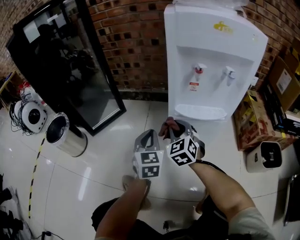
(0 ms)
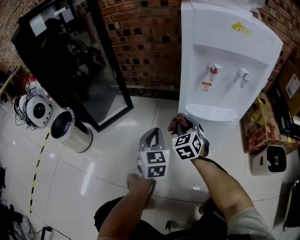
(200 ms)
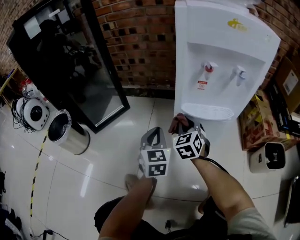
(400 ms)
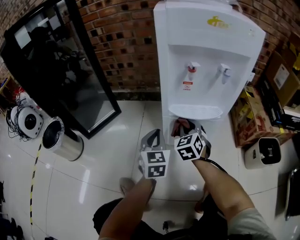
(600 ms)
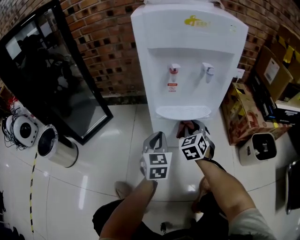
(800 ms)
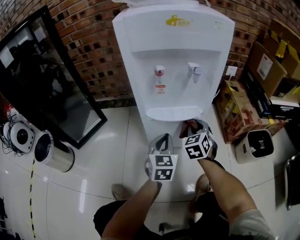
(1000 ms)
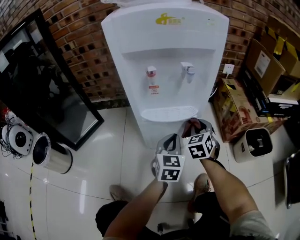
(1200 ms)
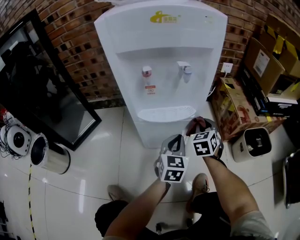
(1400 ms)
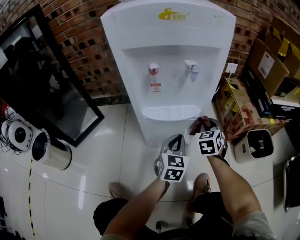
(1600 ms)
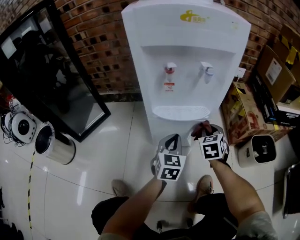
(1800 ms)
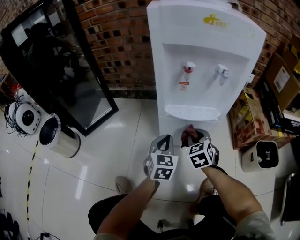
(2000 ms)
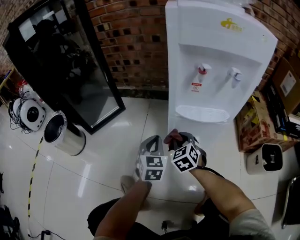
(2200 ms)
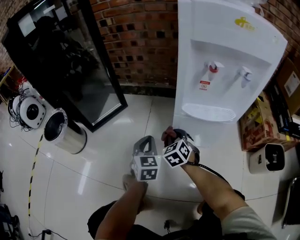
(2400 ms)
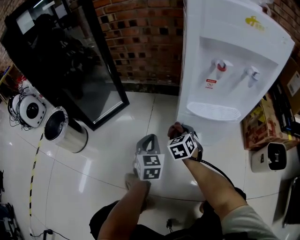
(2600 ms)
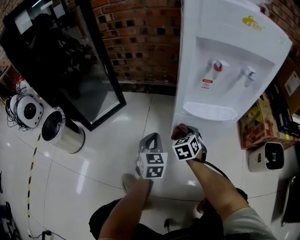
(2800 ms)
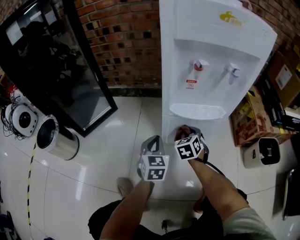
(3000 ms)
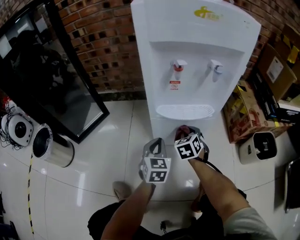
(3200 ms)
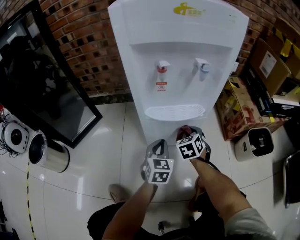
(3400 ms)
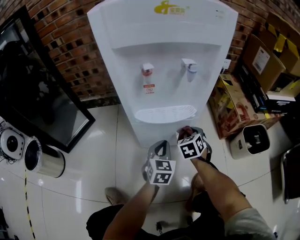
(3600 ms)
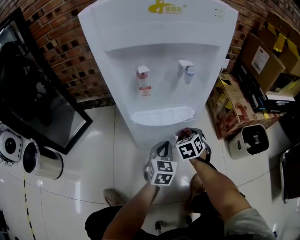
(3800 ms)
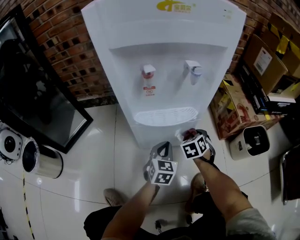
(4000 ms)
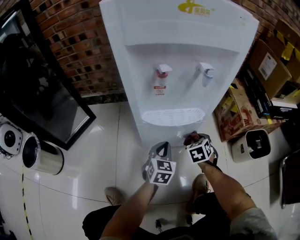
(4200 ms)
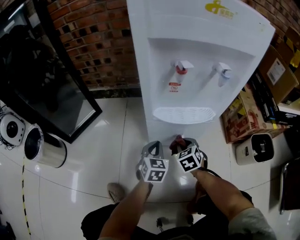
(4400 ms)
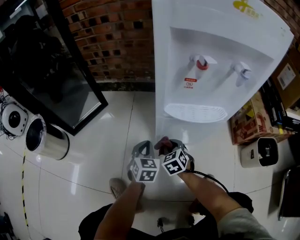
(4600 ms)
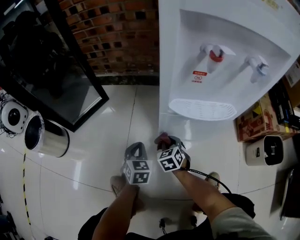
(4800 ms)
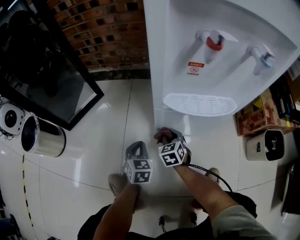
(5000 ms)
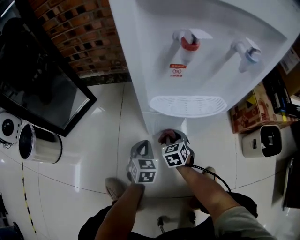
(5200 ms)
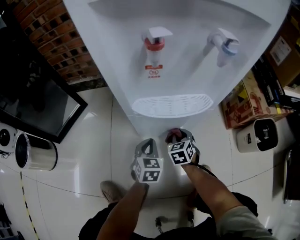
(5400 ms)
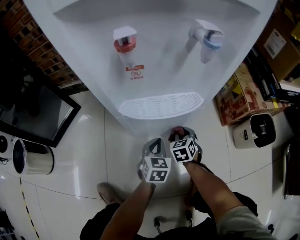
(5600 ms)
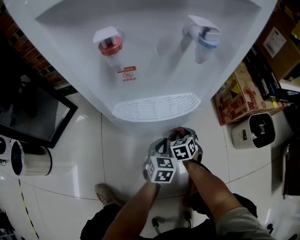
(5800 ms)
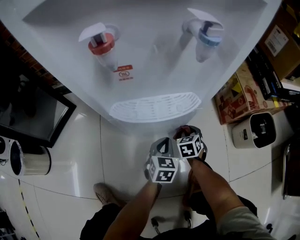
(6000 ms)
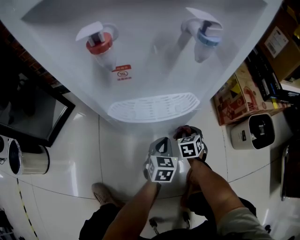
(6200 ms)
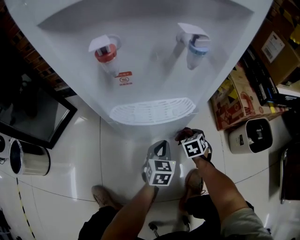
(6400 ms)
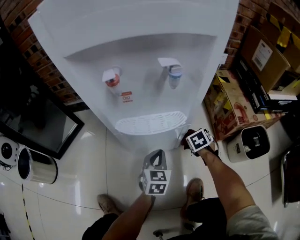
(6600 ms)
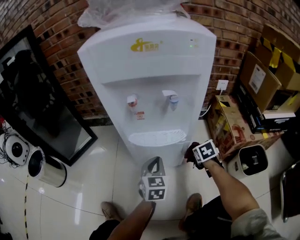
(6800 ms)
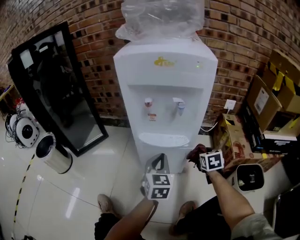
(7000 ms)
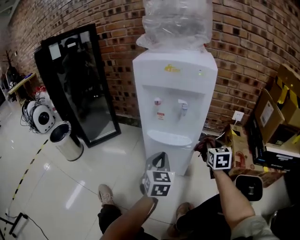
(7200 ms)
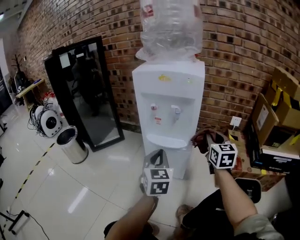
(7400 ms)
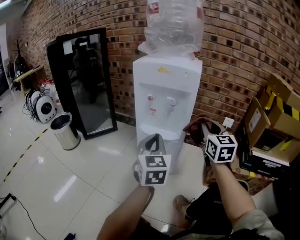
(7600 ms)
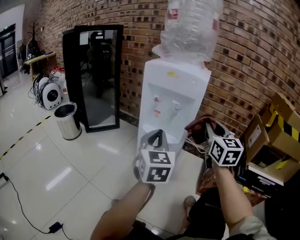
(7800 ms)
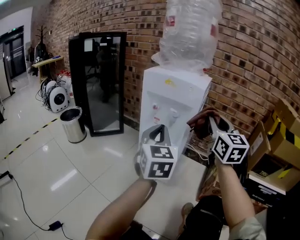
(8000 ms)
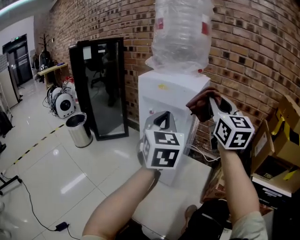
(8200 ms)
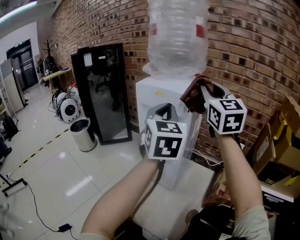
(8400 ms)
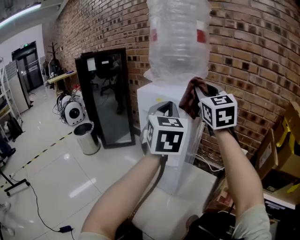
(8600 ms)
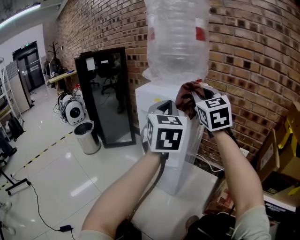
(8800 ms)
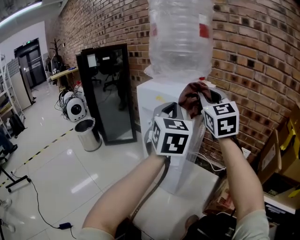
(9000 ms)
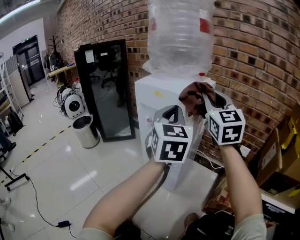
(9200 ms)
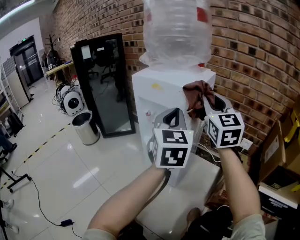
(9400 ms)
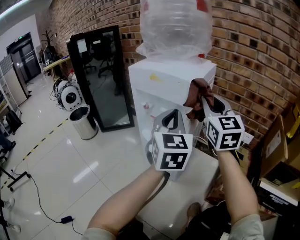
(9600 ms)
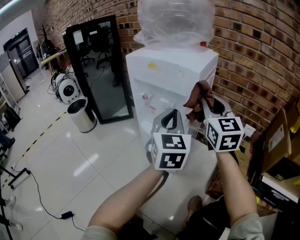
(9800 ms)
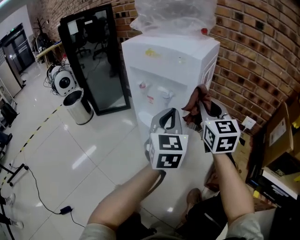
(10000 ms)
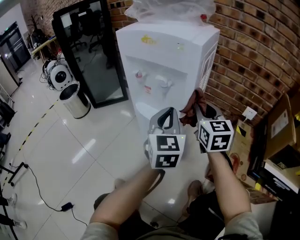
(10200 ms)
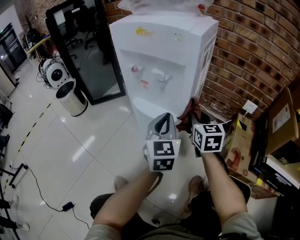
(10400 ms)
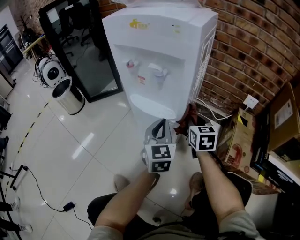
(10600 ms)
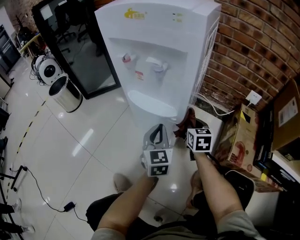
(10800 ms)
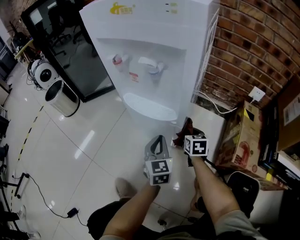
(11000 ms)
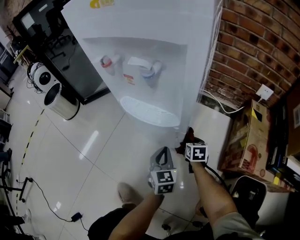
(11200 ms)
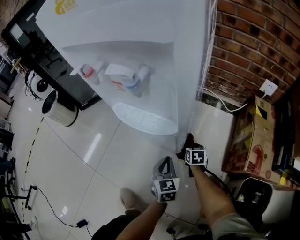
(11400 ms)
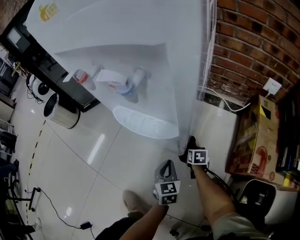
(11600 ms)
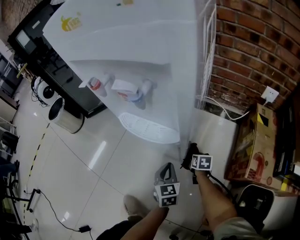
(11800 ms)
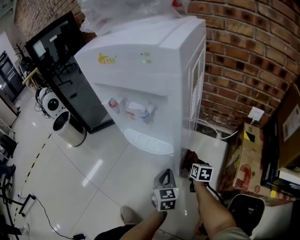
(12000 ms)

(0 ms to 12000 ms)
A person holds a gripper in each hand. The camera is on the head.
0 ms - 1600 ms: The left gripper ends up some 25 cm from where it was, and rotates approximately 20 degrees; the right gripper moves roughly 30 cm, and changes its angle by roughly 30 degrees.
1600 ms - 3000 ms: The left gripper shifts by about 20 cm.
3000 ms - 4400 ms: The left gripper moves downward and to the right, approximately 10 cm. Meanwhile the right gripper moves roughly 15 cm to the right and comes back.
4400 ms - 6000 ms: The right gripper shifts by approximately 20 cm, and swivels approximately 20 degrees. Meanwhile the left gripper changes place by roughly 15 cm.
6000 ms - 7600 ms: The two grippers go some 50 cm upward. The right gripper tilts its fingers approximately 50 degrees upward. Meanwhile the left gripper tips its fingers upward by approximately 30 degrees.
7600 ms - 9000 ms: The right gripper is displaced upward and forward by about 25 cm, and swivels approximately 20 degrees. The left gripper moves upward, forward and to the right, some 25 cm.
9000 ms - 10400 ms: The grippers both shift downward by about 30 cm. The right gripper changes its angle by some 30 degrees.
10400 ms - 12000 ms: Both grippers move downward, roughly 25 cm. The right gripper turns by about 30 degrees; the left gripper rotates approximately 20 degrees.

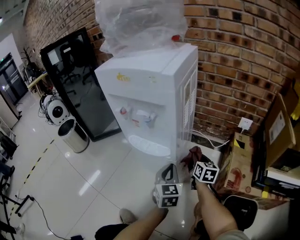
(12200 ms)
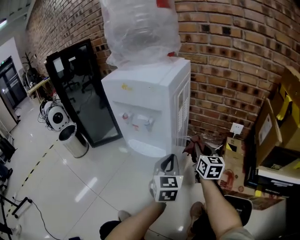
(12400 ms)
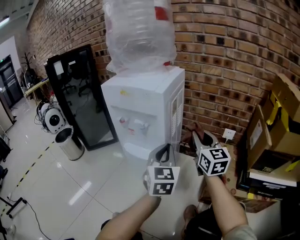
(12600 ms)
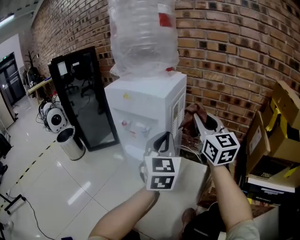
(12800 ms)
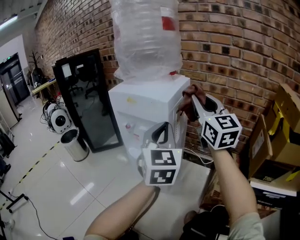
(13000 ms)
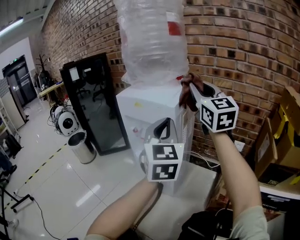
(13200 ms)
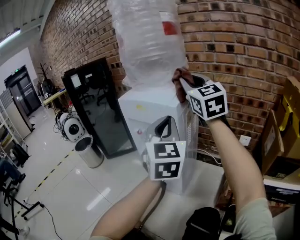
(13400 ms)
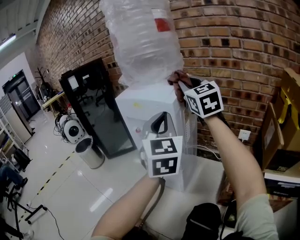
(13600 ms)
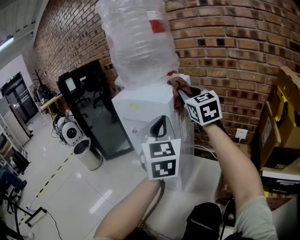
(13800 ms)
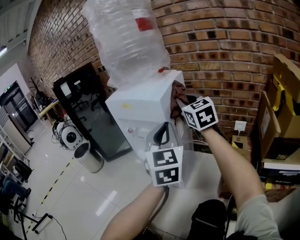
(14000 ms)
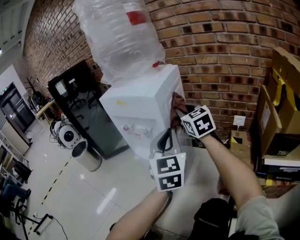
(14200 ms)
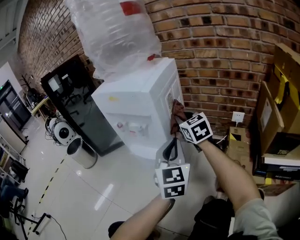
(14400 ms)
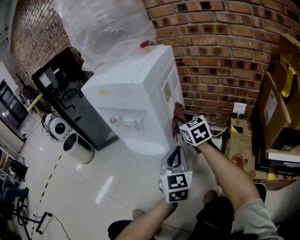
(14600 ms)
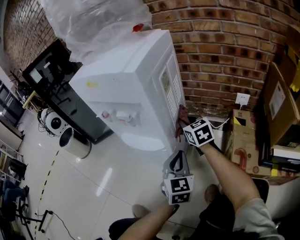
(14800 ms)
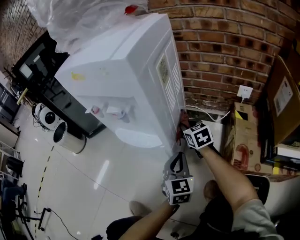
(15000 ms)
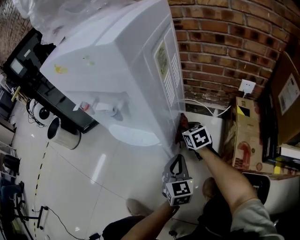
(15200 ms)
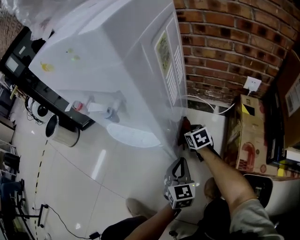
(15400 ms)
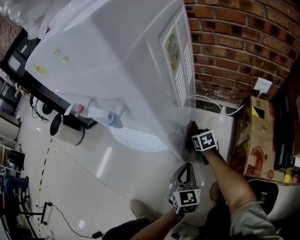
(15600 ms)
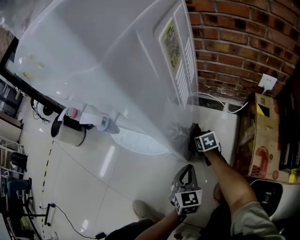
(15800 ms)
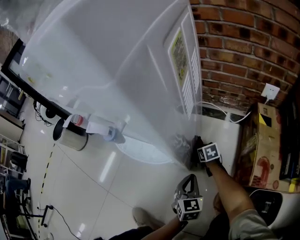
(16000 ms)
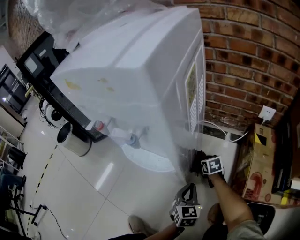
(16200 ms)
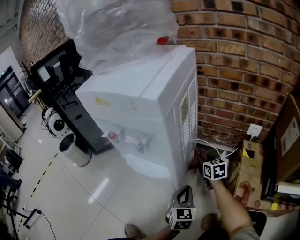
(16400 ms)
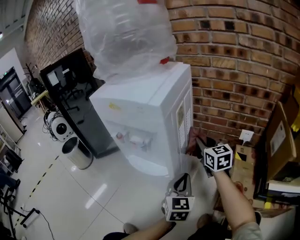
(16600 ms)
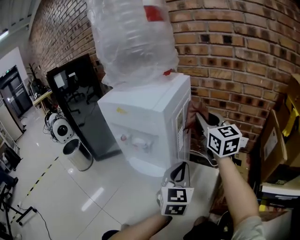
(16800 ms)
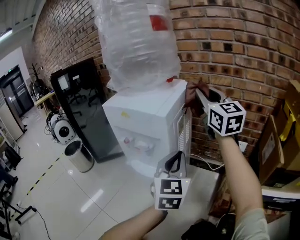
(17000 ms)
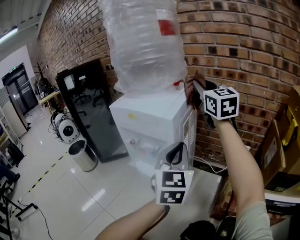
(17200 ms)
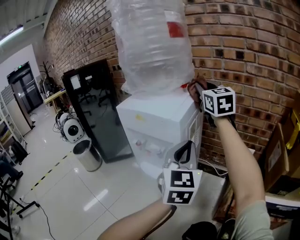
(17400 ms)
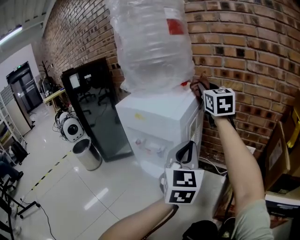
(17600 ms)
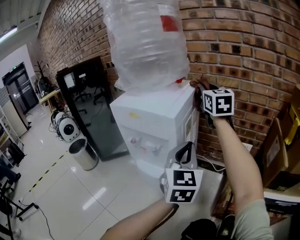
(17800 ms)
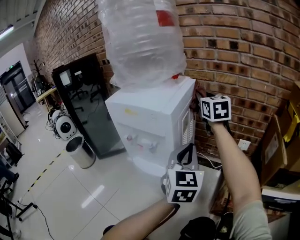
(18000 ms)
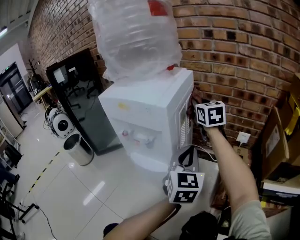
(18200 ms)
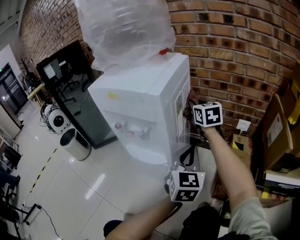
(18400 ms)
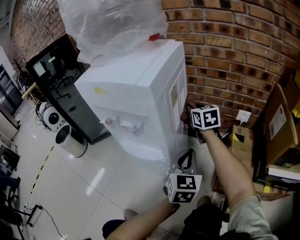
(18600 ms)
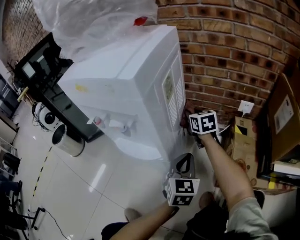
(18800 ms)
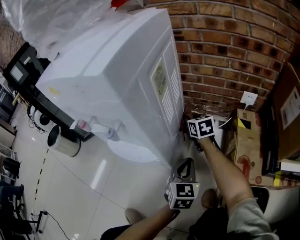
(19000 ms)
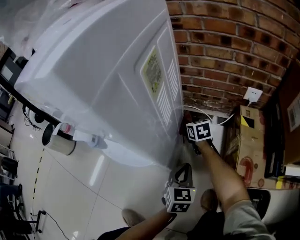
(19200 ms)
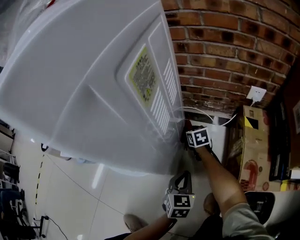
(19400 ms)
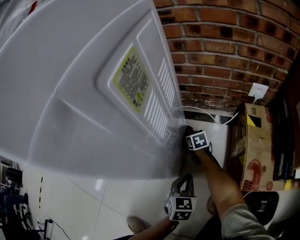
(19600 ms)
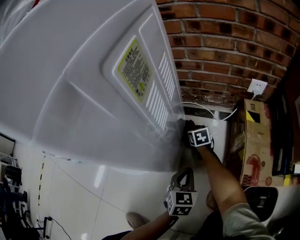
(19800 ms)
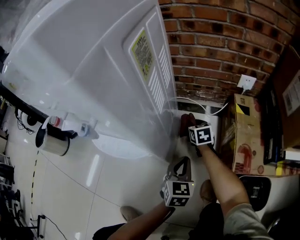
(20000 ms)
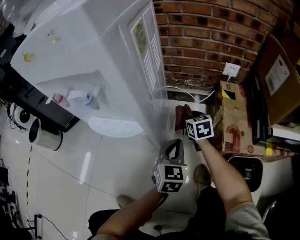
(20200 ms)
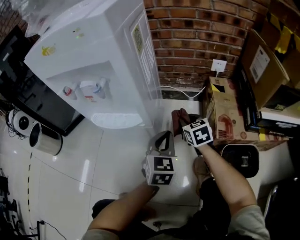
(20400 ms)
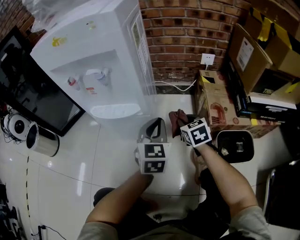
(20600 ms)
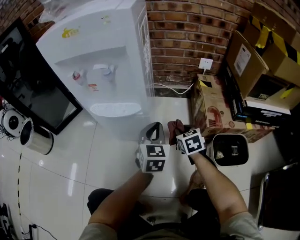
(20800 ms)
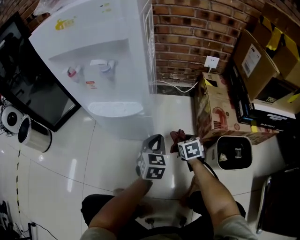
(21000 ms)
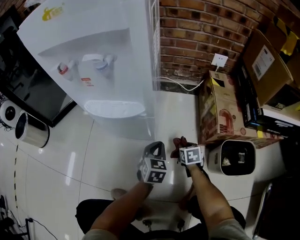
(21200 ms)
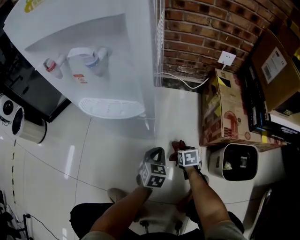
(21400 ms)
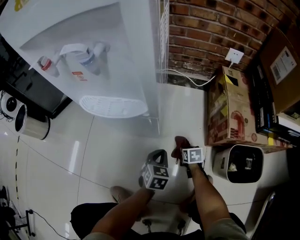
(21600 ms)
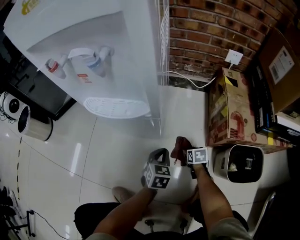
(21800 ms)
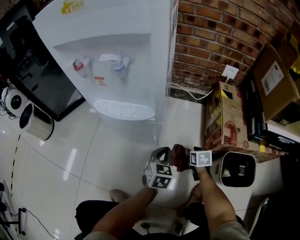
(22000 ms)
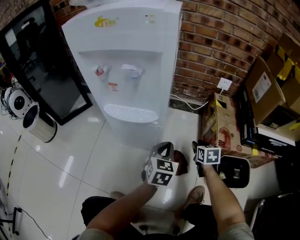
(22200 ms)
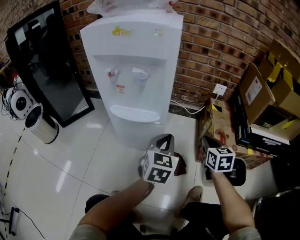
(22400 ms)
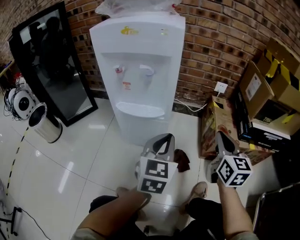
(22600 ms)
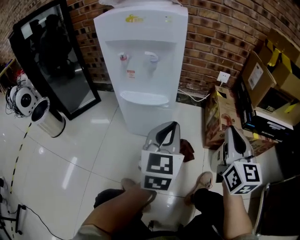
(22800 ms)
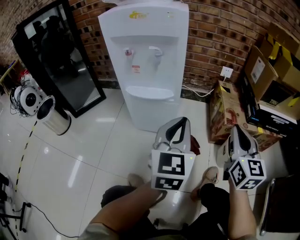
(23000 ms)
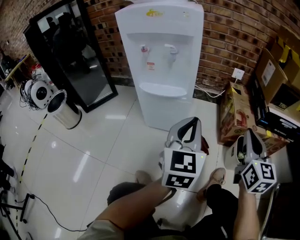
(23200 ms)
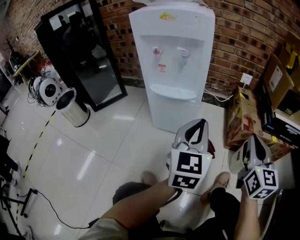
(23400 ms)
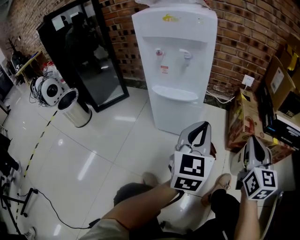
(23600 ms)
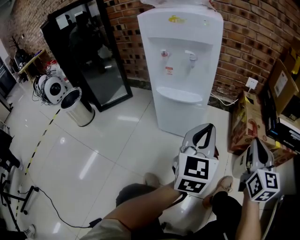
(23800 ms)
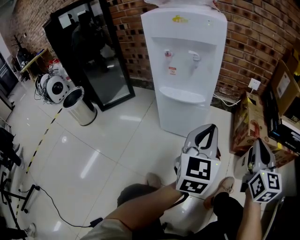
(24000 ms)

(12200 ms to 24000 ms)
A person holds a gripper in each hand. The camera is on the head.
12200 ms - 13600 ms: Both grippers move upward, approximately 40 cm. The right gripper swivels roughly 50 degrees; the left gripper rotates some 30 degrees.
13600 ms - 15200 ms: The grippers both shift downward by roughly 50 cm. The right gripper angles its fingers downward, by some 40 degrees. The left gripper swivels about 30 degrees.
15200 ms - 16600 ms: The right gripper is displaced upward by about 25 cm, and swivels some 30 degrees, while the left gripper travels upward by about 15 cm.
16600 ms - 18200 ms: The left gripper goes roughly 15 cm upward, while the right gripper shifts approximately 20 cm upward and forward.
18200 ms - 19600 ms: Both grippers move downward, some 50 cm. The left gripper rotates about 30 degrees. Meanwhile the right gripper tips its fingers downward by some 40 degrees.
19600 ms - 21000 ms: The right gripper travels backward by approximately 30 cm. Meanwhile the left gripper shifts approximately 10 cm upward, backward and to the left.
21000 ms - 22600 ms: The left gripper travels upward by some 20 cm. The right gripper goes some 30 cm upward, points its fingers approximately 40 degrees further upward, and opens, then closes once more.
22600 ms - 24000 ms: The two grippers go roughly 10 cm backward.
